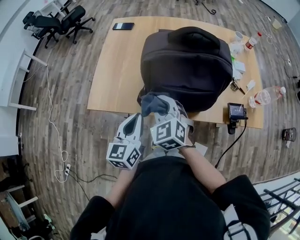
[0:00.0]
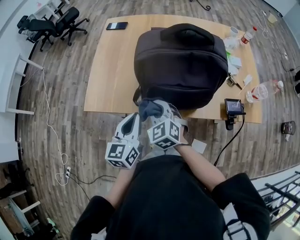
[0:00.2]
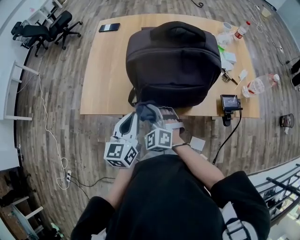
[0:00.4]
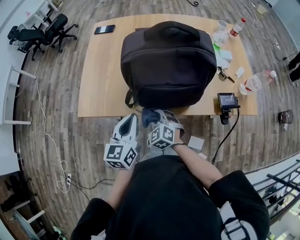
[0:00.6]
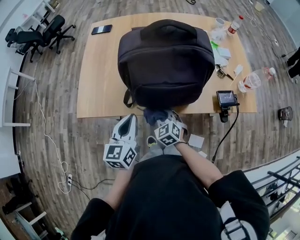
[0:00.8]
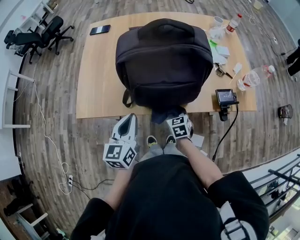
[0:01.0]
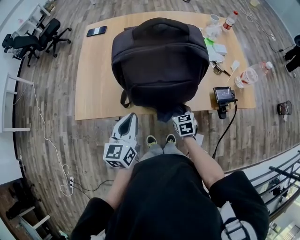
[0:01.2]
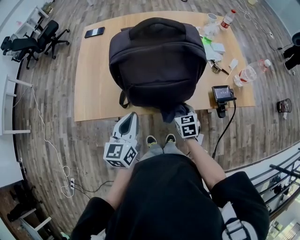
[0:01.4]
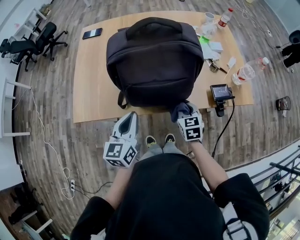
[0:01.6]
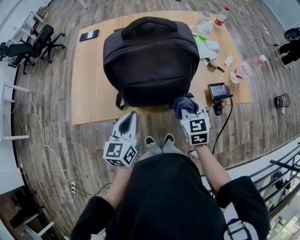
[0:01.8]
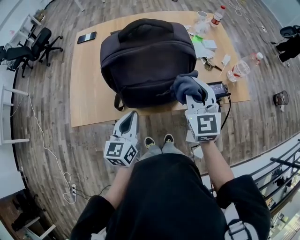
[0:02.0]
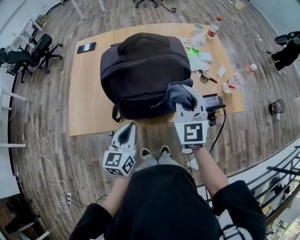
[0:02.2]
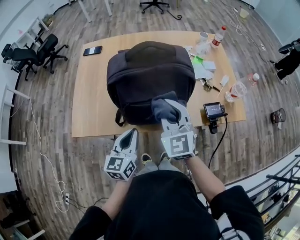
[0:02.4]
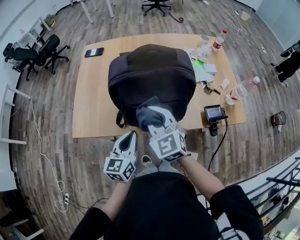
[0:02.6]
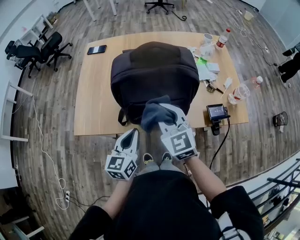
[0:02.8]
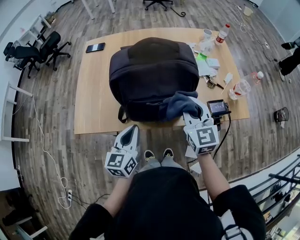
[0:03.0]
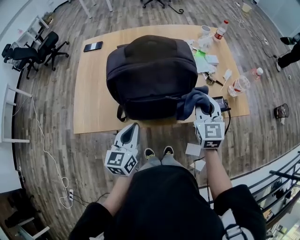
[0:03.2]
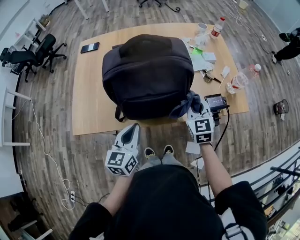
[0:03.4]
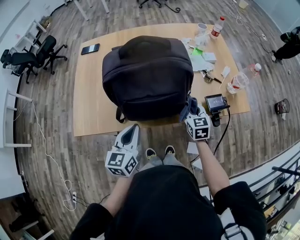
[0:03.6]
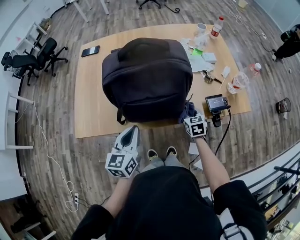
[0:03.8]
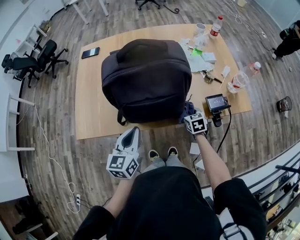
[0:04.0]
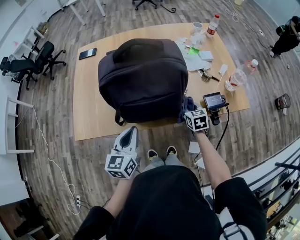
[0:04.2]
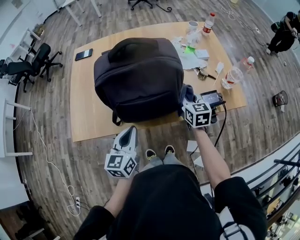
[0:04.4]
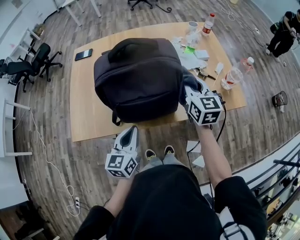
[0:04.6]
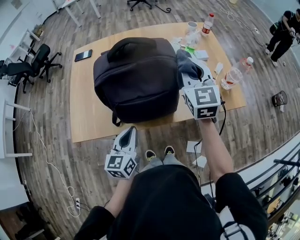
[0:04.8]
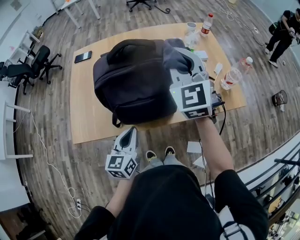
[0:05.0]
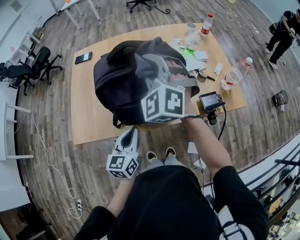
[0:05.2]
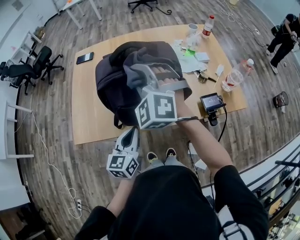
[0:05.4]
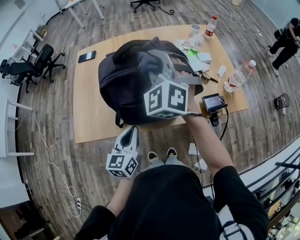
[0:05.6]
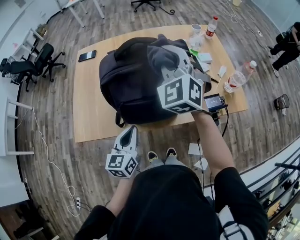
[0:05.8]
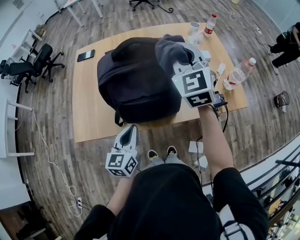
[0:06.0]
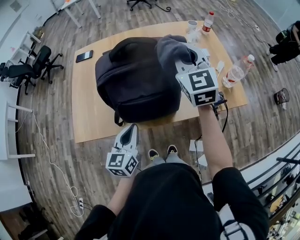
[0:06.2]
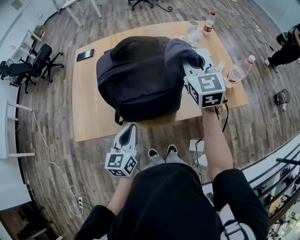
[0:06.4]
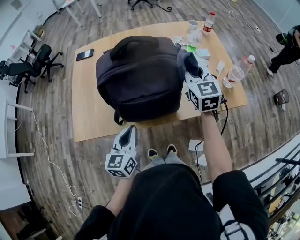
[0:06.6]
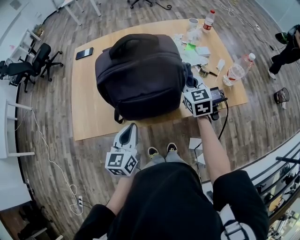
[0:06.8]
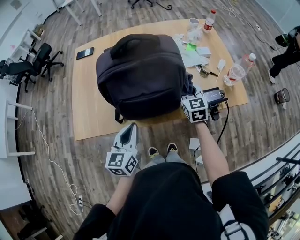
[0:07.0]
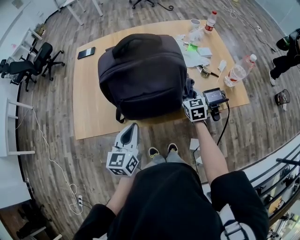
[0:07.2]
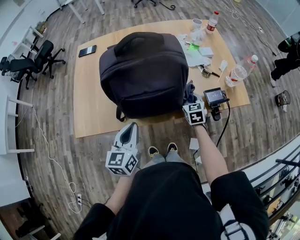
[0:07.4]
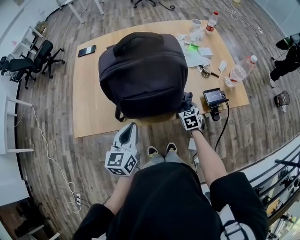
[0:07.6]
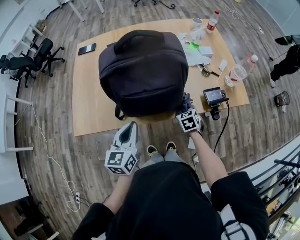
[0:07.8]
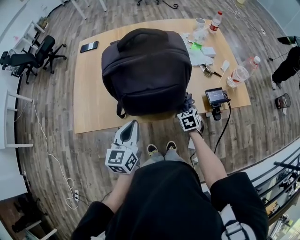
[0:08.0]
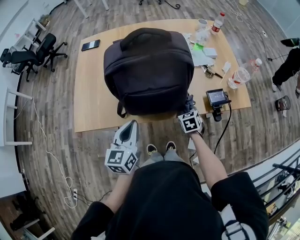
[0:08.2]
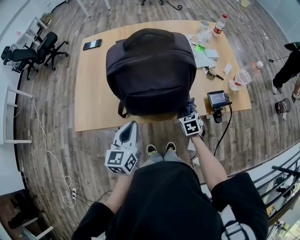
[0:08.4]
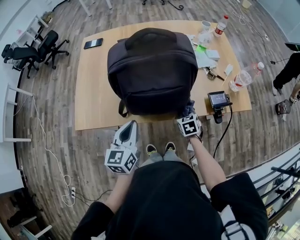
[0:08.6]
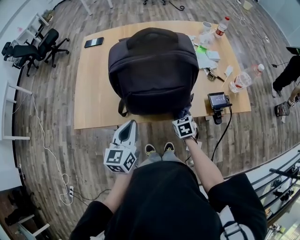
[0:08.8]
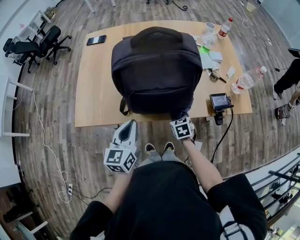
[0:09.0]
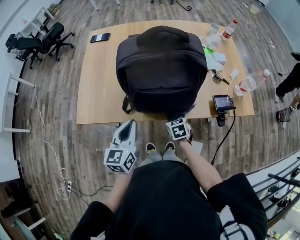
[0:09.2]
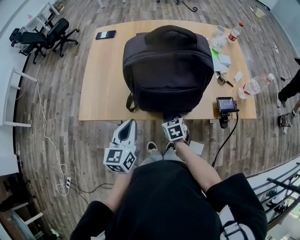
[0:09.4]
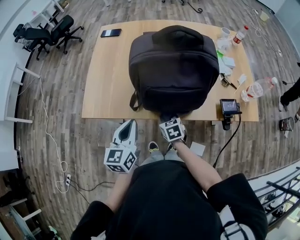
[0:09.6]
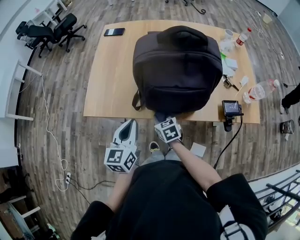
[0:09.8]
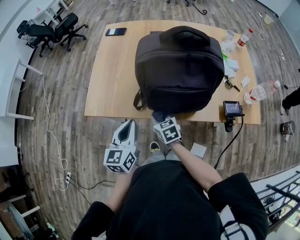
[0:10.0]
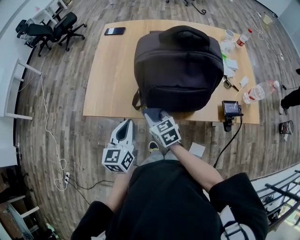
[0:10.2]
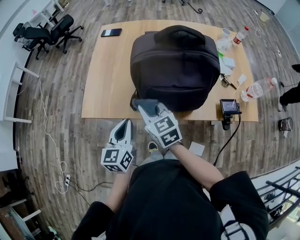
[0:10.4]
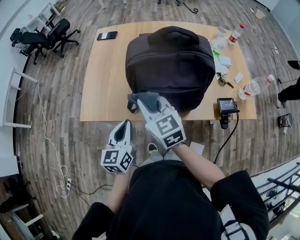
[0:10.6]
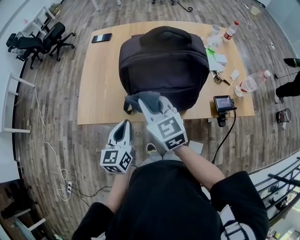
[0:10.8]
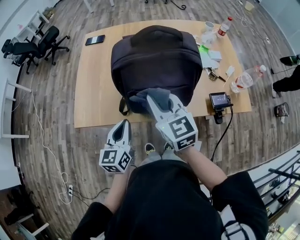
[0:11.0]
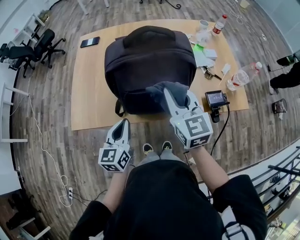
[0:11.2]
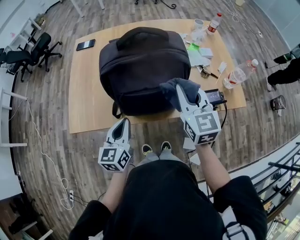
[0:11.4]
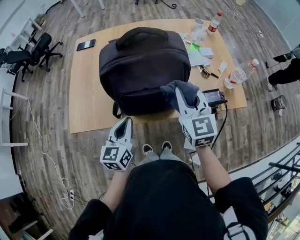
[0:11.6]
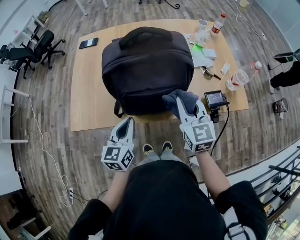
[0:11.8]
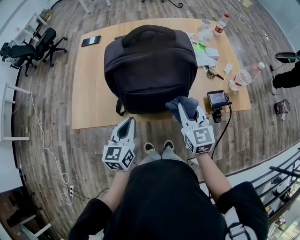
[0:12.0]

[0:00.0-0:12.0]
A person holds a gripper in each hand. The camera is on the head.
0:00.0 to 0:01.6: The left gripper moves to the right, approximately 5 cm. The right gripper is displaced to the right and downward by approximately 25 cm, and swivels roughly 40 degrees.
0:01.6 to 0:03.0: The right gripper is displaced upward by approximately 20 cm, and turns by about 30 degrees.
0:03.0 to 0:04.4: The right gripper heads downward, to the right and forward, covering approximately 15 cm, and turns by roughly 20 degrees.
0:04.4 to 0:06.0: The right gripper moves upward, about 25 cm, and rotates roughly 40 degrees.
0:06.0 to 0:07.6: The right gripper heads downward, covering some 40 cm, and tips its fingers downward by some 40 degrees.
0:07.6 to 0:09.0: The right gripper travels to the left and backward by approximately 10 cm.
0:09.0 to 0:10.4: The right gripper travels upward and to the left by some 30 cm, and swivels roughly 40 degrees. Meanwhile the left gripper travels to the left by about 10 cm.
0:10.4 to 0:12.0: The left gripper travels to the right by some 10 cm; the right gripper travels to the right by roughly 25 cm, and changes its angle by approximately 30 degrees.

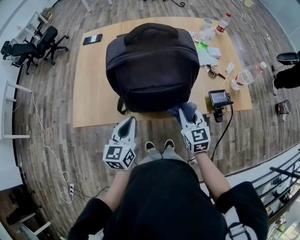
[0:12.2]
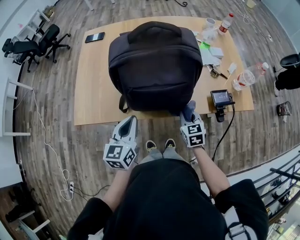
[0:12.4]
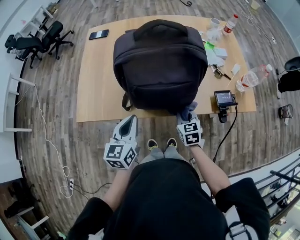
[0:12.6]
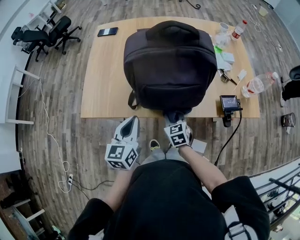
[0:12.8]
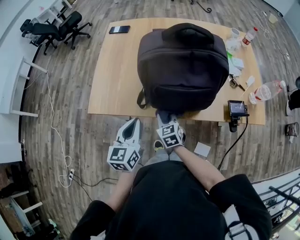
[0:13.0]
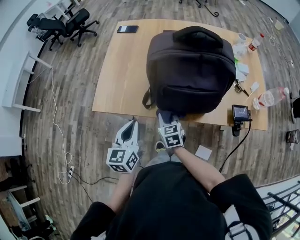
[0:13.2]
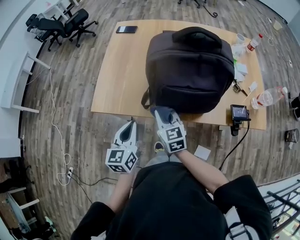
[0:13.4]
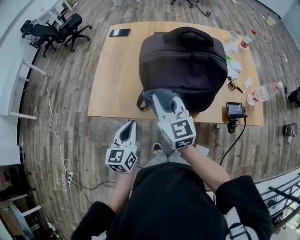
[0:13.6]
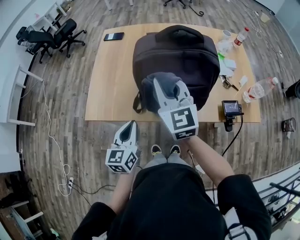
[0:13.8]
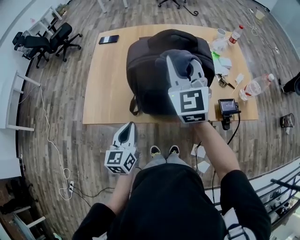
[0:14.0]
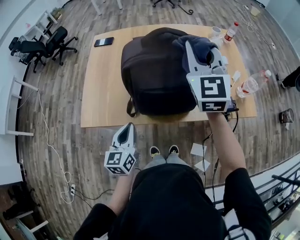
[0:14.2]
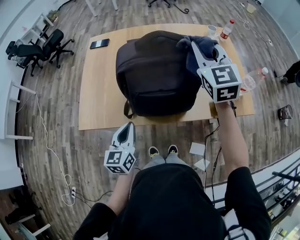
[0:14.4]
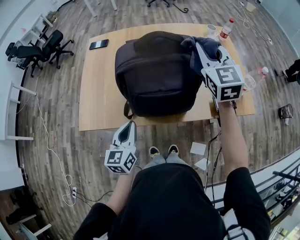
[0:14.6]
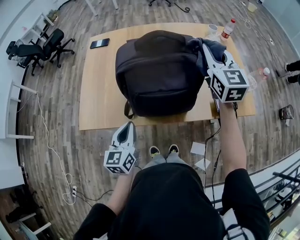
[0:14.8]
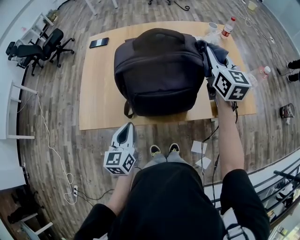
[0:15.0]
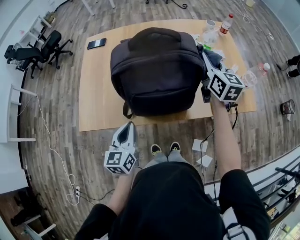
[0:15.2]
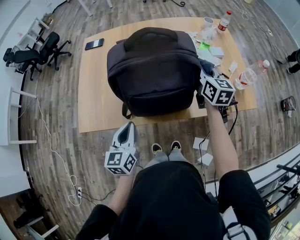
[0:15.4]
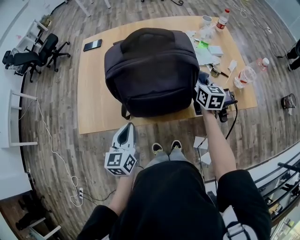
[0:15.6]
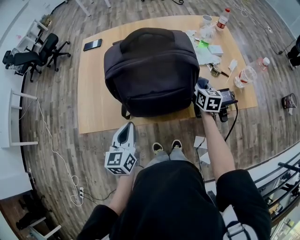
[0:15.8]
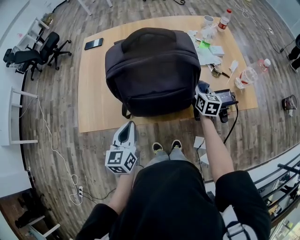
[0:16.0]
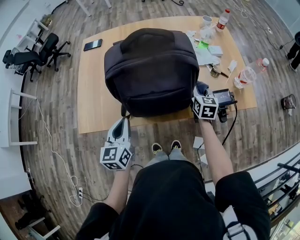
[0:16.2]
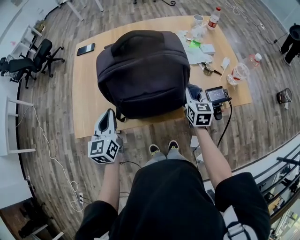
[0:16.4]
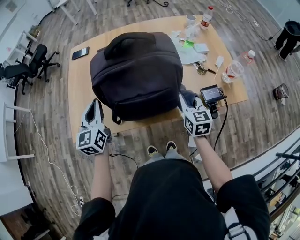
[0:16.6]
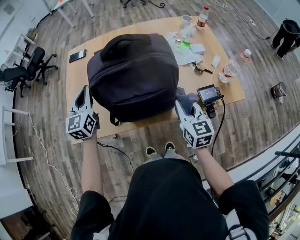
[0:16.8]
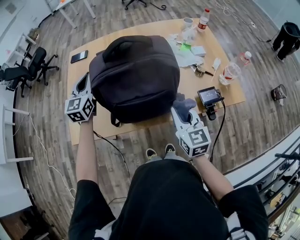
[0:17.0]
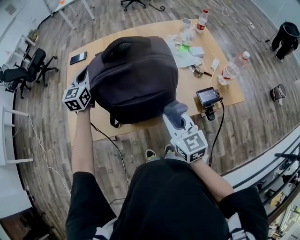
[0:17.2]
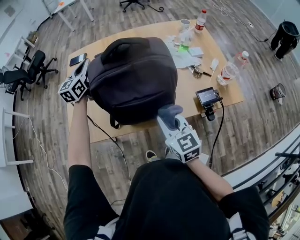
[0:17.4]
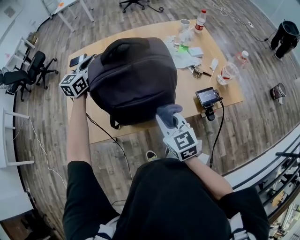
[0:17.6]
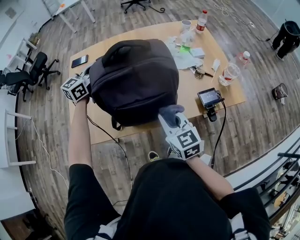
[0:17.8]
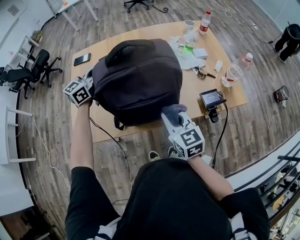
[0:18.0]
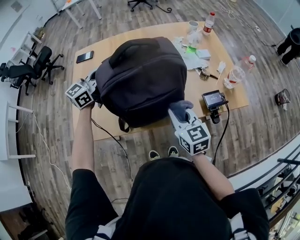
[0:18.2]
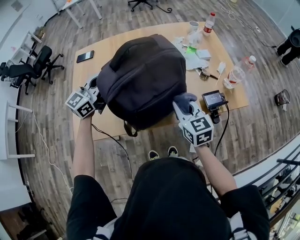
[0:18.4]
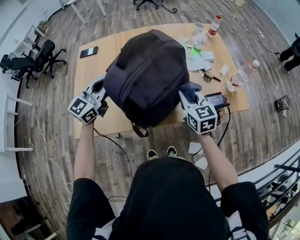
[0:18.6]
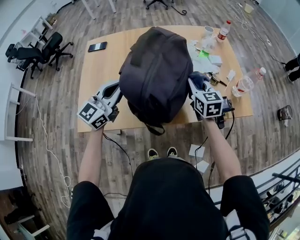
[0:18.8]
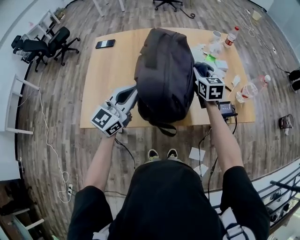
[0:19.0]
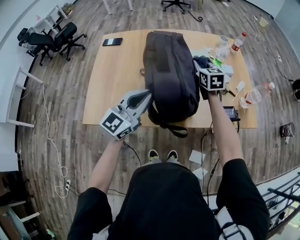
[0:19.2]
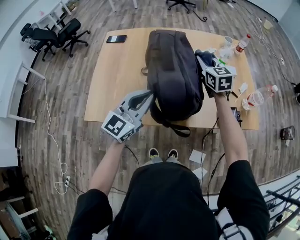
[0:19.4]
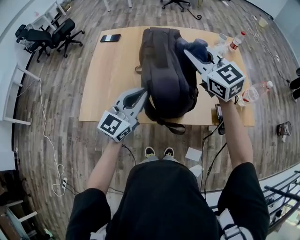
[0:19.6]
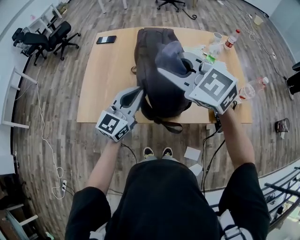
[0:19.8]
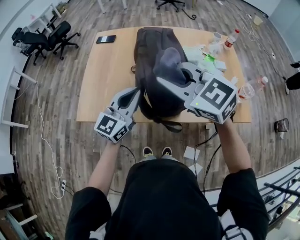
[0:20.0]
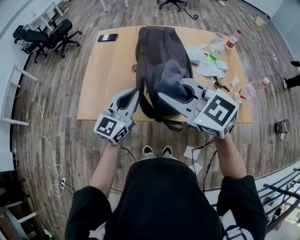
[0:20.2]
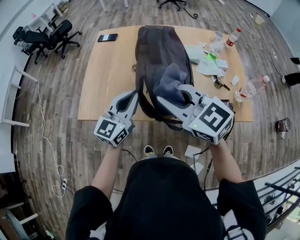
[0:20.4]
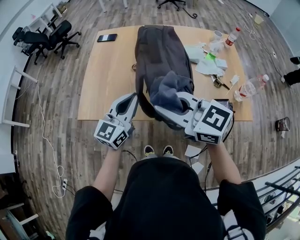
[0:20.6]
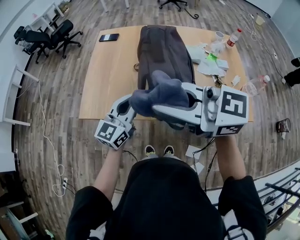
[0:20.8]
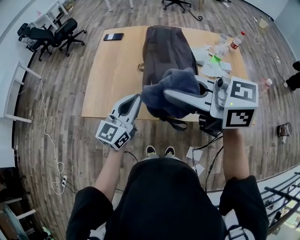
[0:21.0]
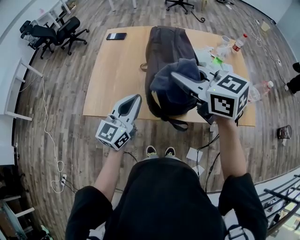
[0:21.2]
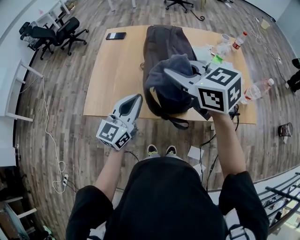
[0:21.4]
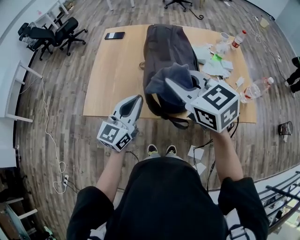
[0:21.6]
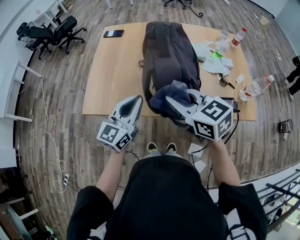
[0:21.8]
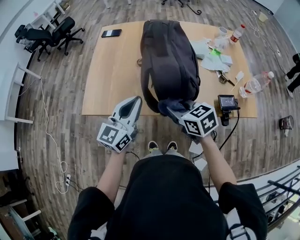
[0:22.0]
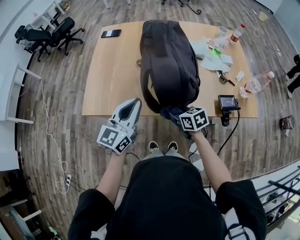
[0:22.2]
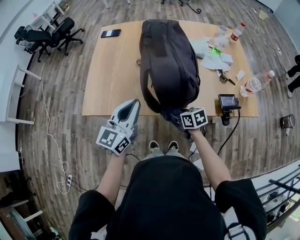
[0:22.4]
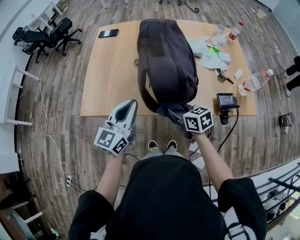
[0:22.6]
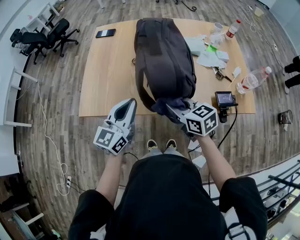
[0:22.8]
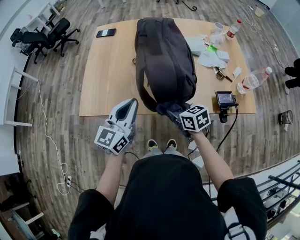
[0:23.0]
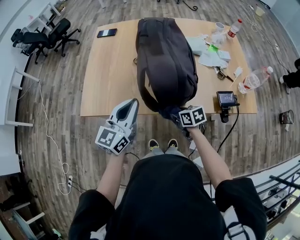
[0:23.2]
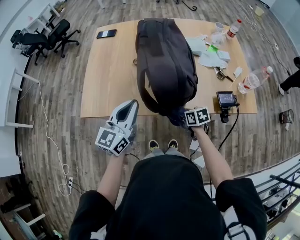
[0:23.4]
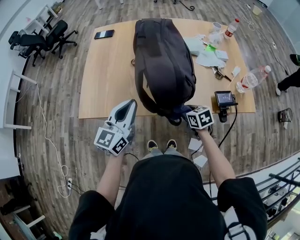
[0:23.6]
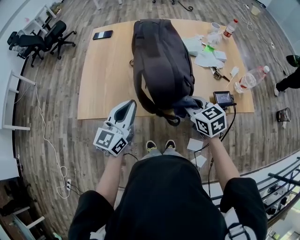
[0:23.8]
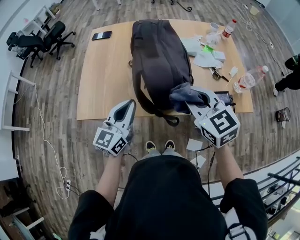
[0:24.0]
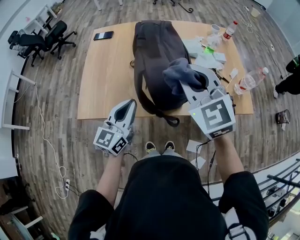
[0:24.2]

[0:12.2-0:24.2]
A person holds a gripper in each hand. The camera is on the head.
0:12.2 to 0:13.8: The right gripper moves upward, to the left and forward, roughly 25 cm, and swivels approximately 20 degrees, while the left gripper goes approximately 10 cm to the left.
0:13.8 to 0:15.2: The right gripper moves to the right and forward, approximately 30 cm, and rotates some 30 degrees.
0:15.2 to 0:16.6: The right gripper shifts about 20 cm downward and backward; the left gripper travels forward, upward and to the left by approximately 15 cm.
0:16.6 to 0:18.2: The left gripper is displaced forward and to the right by some 15 cm, and turns by roughly 50 degrees. The right gripper shifts some 10 cm to the left and upward.
0:18.2 to 0:19.8: The left gripper changes place by approximately 15 cm, and swivels some 20 degrees; the right gripper shifts some 20 cm upward, and changes its angle by about 50 degrees.
0:19.8 to 0:21.2: The left gripper goes roughly 5 cm to the left; the right gripper moves about 10 cm backward and comes back, and changes its angle by about 30 degrees.
0:21.2 to 0:22.6: The right gripper shifts approximately 25 cm downward, and turns by roughly 30 degrees.
0:22.6 to 0:24.2: The right gripper goes up and down, roughly 40 cm each way, reversing 2 times, and rotates around the line of its fingers by approximately 50 degrees, counterclockwise from behind.
